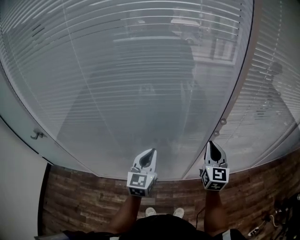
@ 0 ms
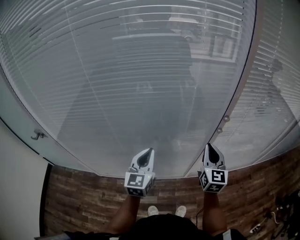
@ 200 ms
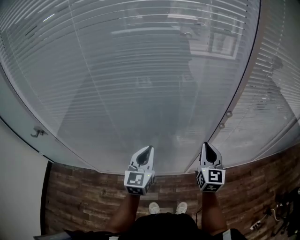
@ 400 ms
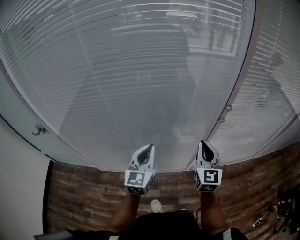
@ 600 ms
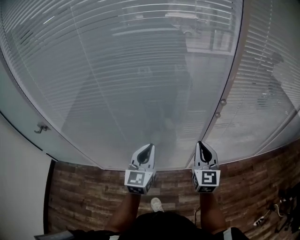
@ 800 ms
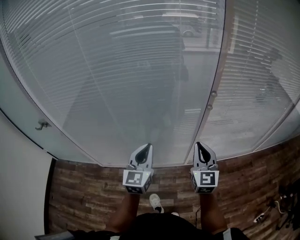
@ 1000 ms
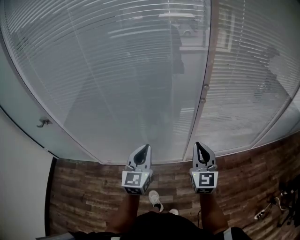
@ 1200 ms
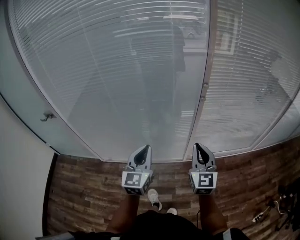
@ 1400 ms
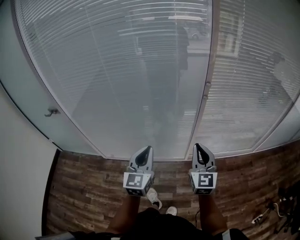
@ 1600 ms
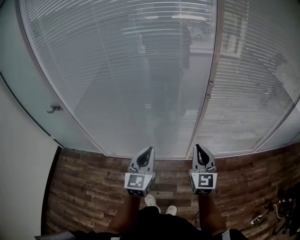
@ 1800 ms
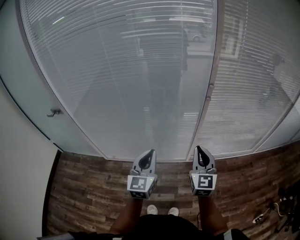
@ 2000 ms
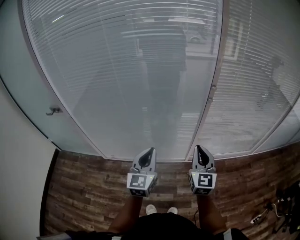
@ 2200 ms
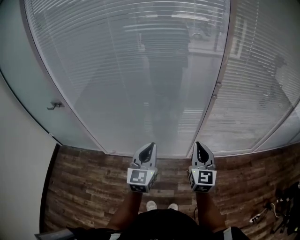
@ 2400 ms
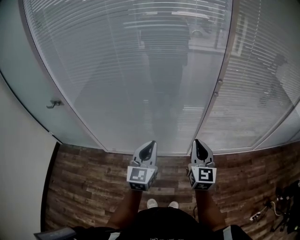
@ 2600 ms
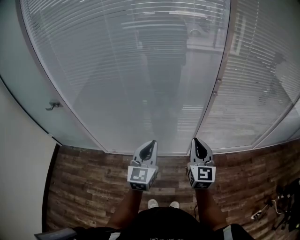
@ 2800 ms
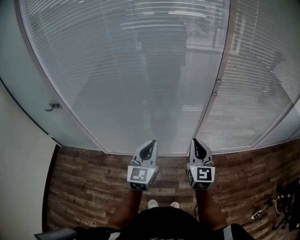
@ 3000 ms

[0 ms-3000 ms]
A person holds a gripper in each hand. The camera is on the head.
0 ms to 1600 ms: Both grippers travel together backward, about 20 cm.
1600 ms to 3000 ms: The right gripper heads to the left, covering some 5 cm.

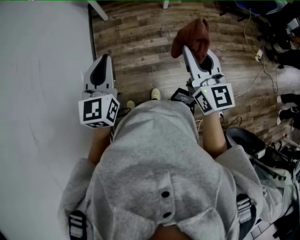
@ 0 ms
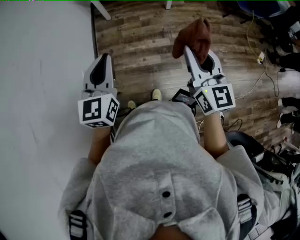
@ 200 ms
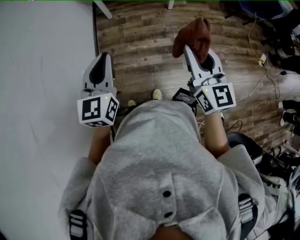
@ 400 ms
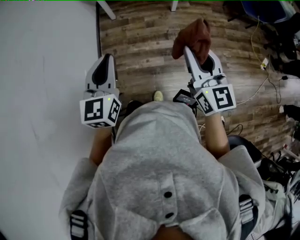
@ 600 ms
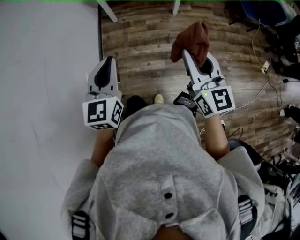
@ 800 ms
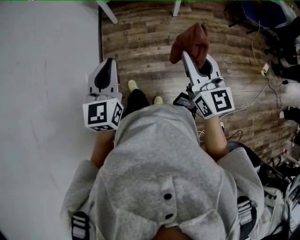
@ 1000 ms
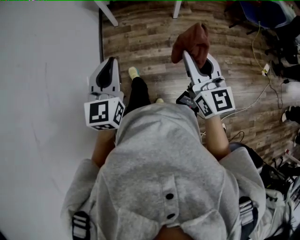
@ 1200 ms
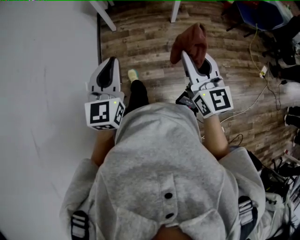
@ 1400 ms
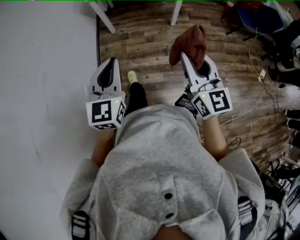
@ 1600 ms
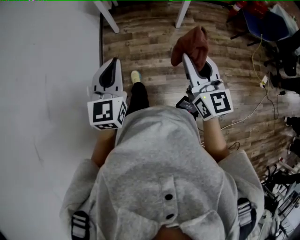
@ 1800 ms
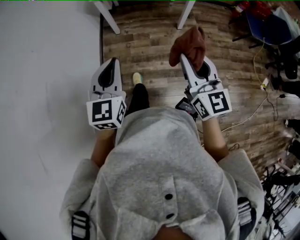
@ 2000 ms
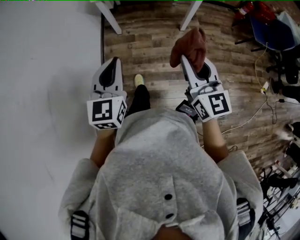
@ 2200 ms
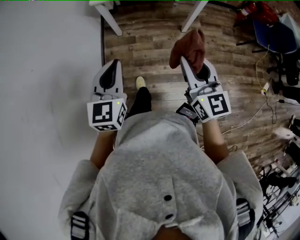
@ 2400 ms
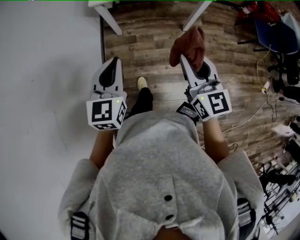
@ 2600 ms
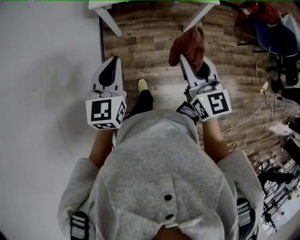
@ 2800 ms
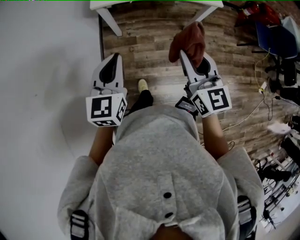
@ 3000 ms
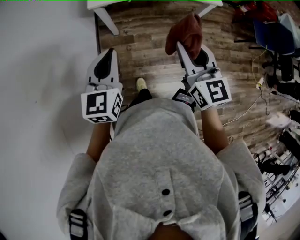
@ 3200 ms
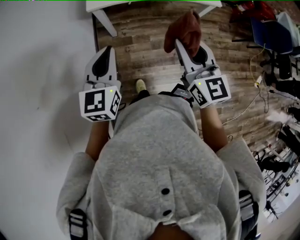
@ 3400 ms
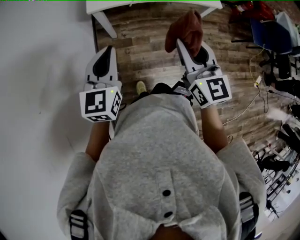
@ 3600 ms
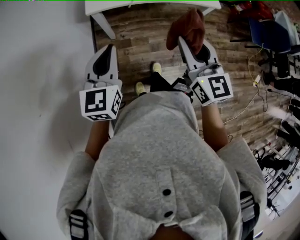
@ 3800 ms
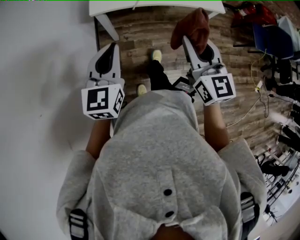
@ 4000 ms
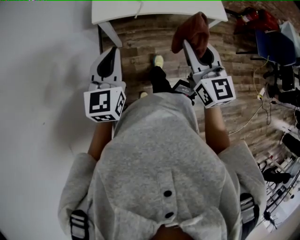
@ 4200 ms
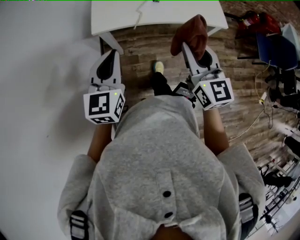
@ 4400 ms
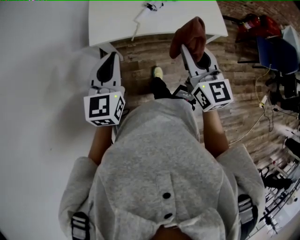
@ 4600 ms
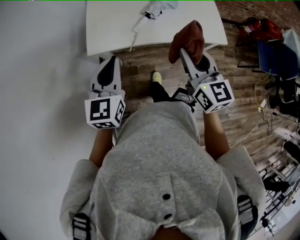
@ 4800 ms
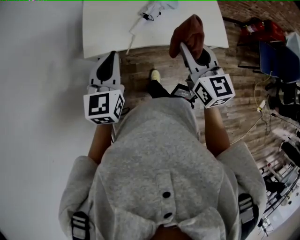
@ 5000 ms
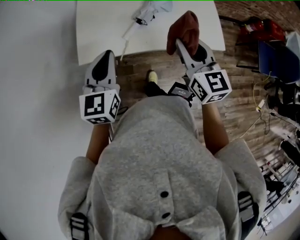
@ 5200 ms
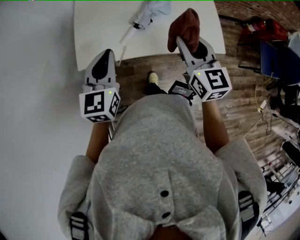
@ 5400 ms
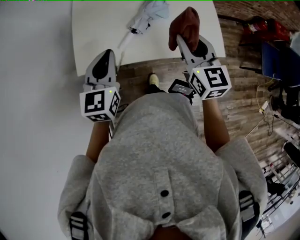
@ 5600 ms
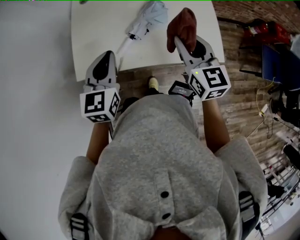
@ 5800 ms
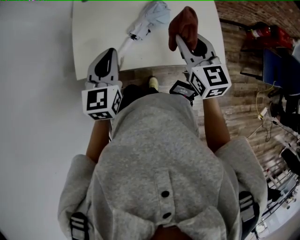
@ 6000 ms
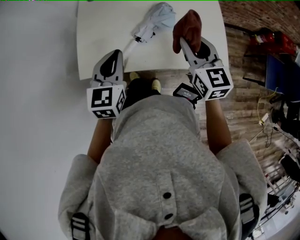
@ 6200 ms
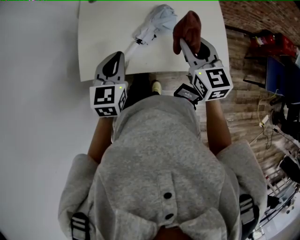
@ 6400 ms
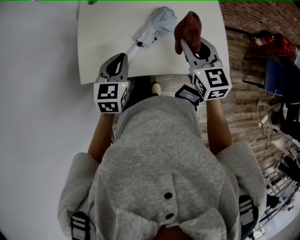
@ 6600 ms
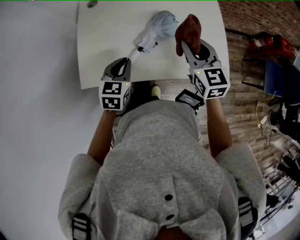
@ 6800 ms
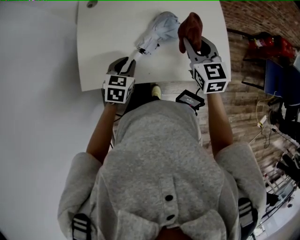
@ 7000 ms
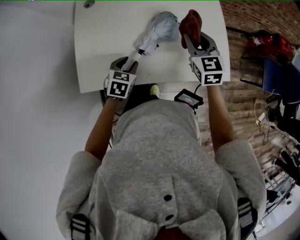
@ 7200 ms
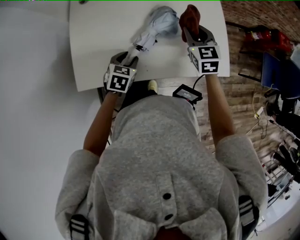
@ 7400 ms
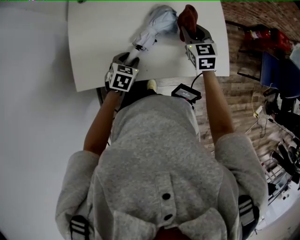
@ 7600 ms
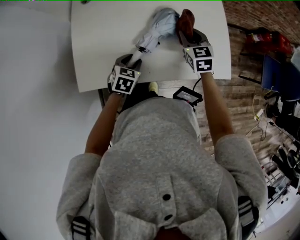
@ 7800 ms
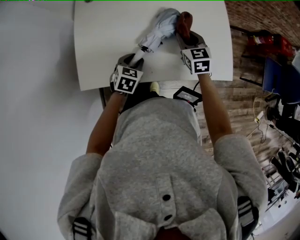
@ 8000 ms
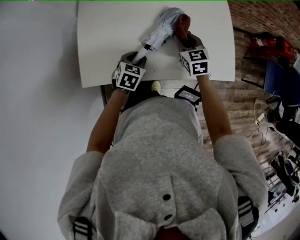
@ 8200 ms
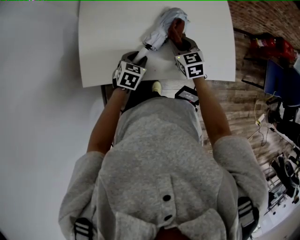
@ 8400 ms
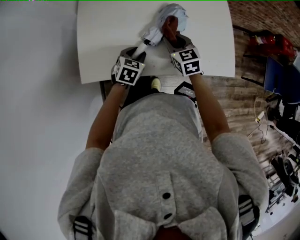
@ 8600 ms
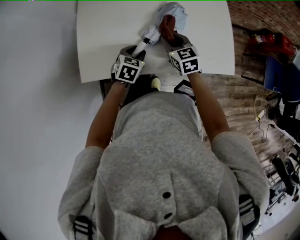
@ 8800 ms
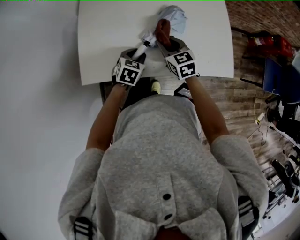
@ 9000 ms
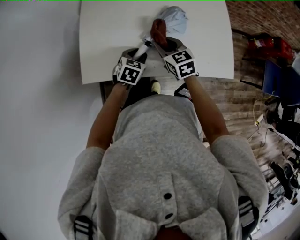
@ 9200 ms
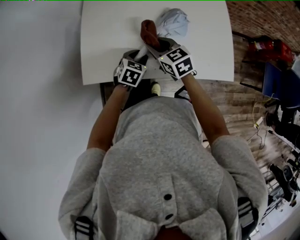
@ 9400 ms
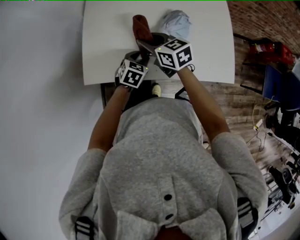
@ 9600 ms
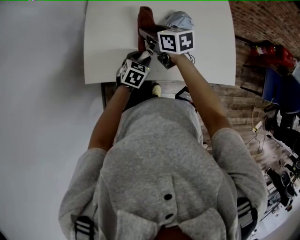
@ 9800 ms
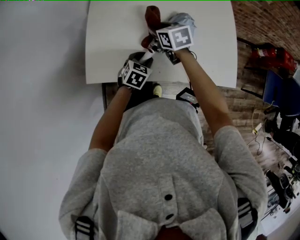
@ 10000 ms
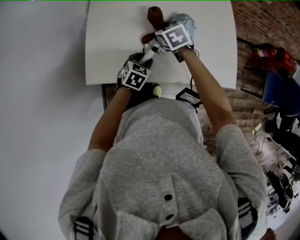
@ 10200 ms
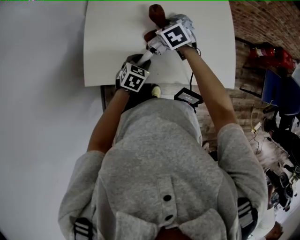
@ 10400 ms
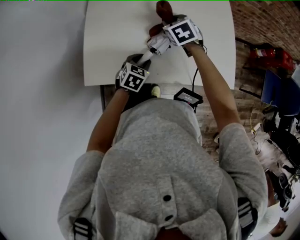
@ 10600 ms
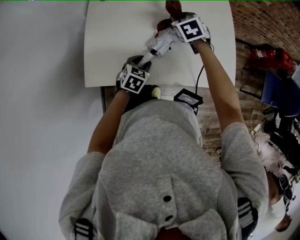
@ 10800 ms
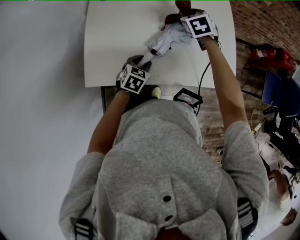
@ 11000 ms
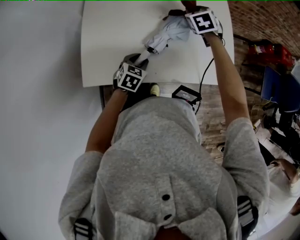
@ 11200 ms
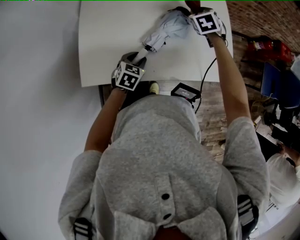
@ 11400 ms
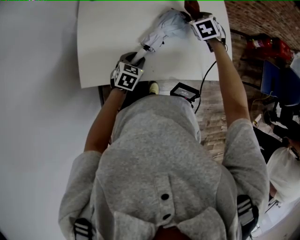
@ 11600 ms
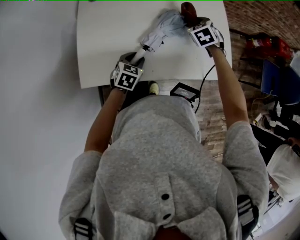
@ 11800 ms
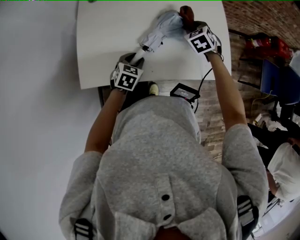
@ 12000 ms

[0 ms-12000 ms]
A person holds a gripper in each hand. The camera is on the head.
0 ms to 1600 ms: The two grippers go roughly 10 cm forward.
1600 ms to 3000 ms: The two grippers travel together, forward, approximately 40 cm.
3000 ms to 4400 ms: Both grippers move forward, some 20 cm.
4400 ms to 6000 ms: The grippers both shift forward and to the right by approximately 35 cm.
6000 ms to 7600 ms: The left gripper moves downward, roughly 25 cm, points its fingers some 30 degrees further downward, and opens, while the right gripper goes roughly 20 cm downward and forward, and turns by roughly 20 degrees.
7600 ms to 9000 ms: The right gripper travels to the left and backward by approximately 15 cm.
9000 ms to 10400 ms: The right gripper heads forward, covering about 10 cm, and swivels some 20 degrees.
10400 ms to 12000 ms: The right gripper moves to the right, some 15 cm.

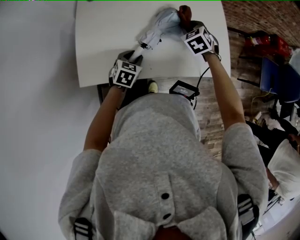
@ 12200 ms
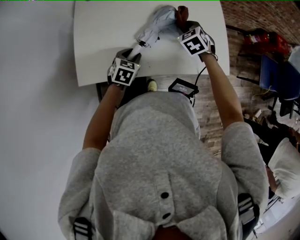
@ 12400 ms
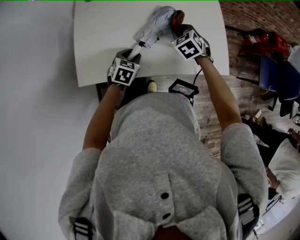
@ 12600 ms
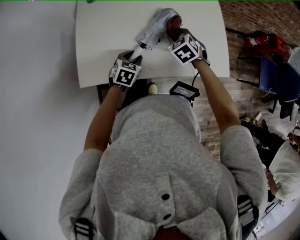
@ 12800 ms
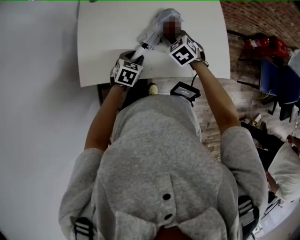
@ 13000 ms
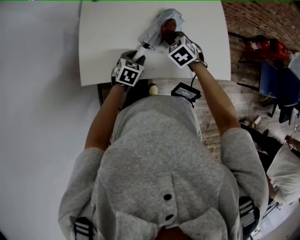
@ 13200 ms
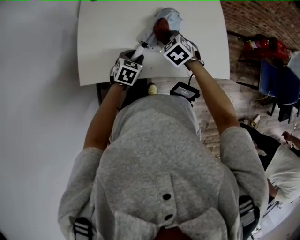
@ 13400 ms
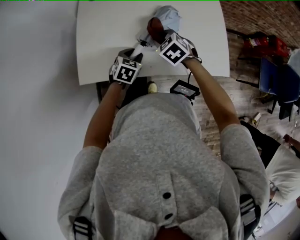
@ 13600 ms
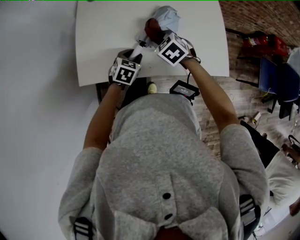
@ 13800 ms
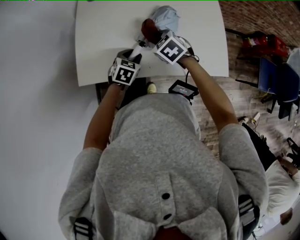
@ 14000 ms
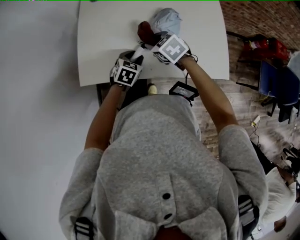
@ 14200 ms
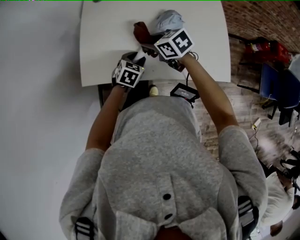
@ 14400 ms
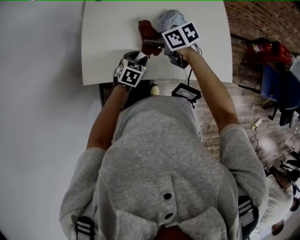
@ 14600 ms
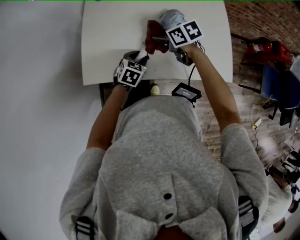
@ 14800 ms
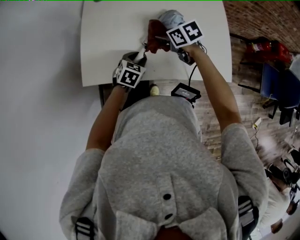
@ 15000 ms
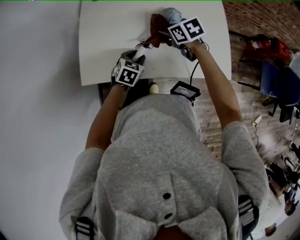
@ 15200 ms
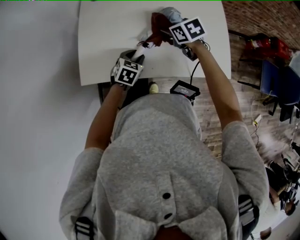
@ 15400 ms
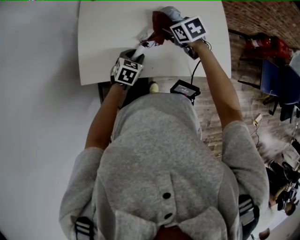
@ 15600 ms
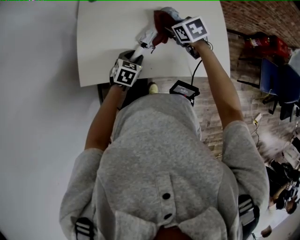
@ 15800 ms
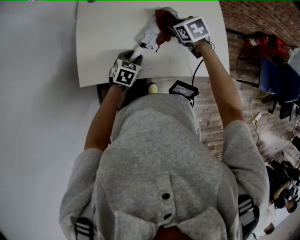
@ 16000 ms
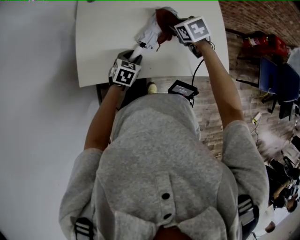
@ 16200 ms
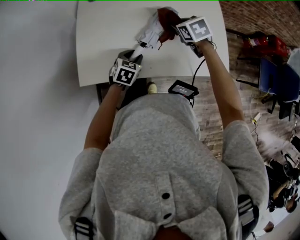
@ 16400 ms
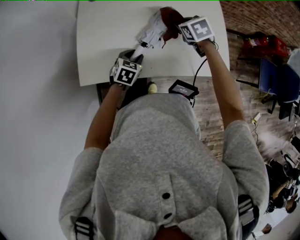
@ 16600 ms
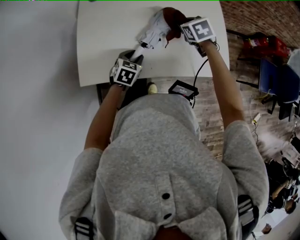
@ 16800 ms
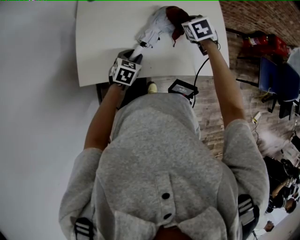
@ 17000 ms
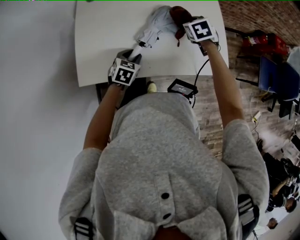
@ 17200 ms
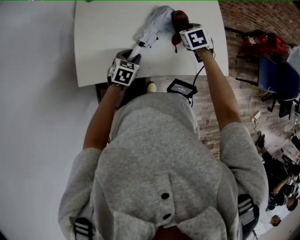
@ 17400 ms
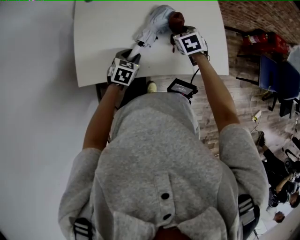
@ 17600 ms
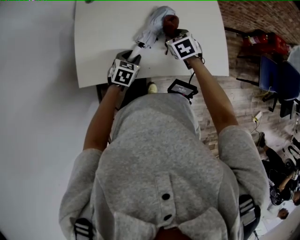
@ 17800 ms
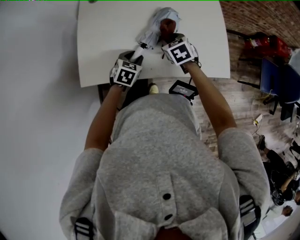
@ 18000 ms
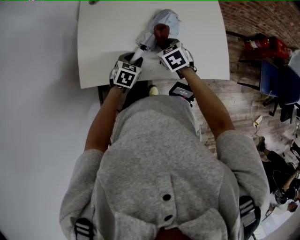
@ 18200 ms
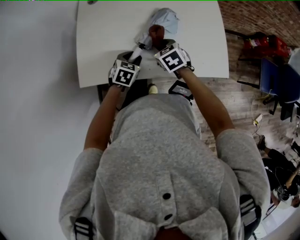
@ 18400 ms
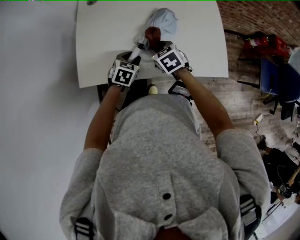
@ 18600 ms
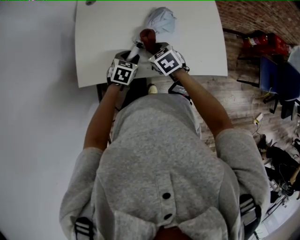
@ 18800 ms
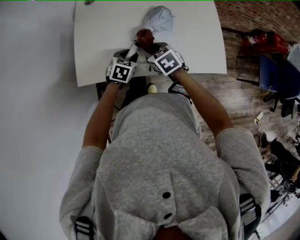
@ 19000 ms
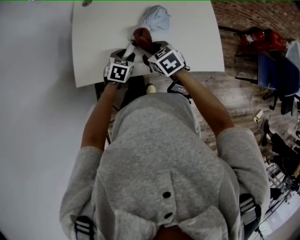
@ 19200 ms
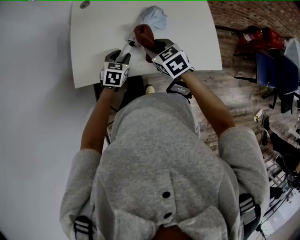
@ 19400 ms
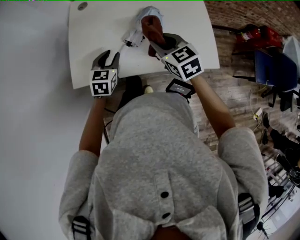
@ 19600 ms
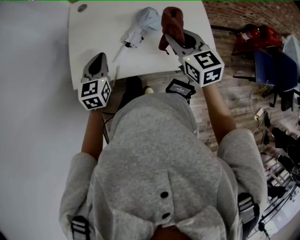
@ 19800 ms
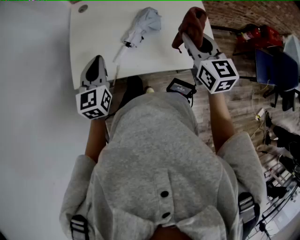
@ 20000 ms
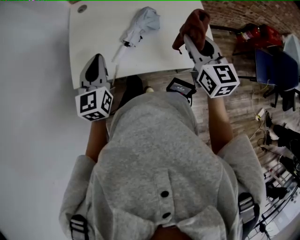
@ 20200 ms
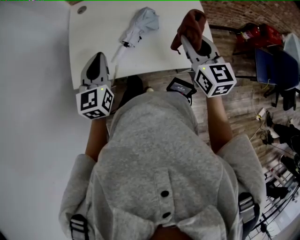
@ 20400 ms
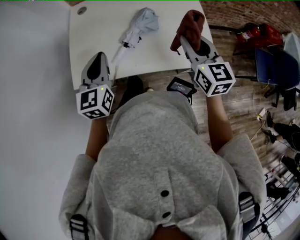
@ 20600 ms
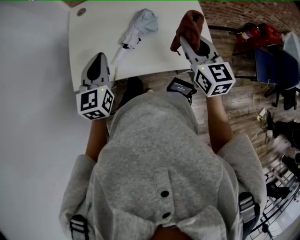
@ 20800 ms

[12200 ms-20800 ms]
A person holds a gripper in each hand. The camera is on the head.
12200 ms to 13600 ms: The right gripper shifts roughly 15 cm to the left and backward.
13600 ms to 15000 ms: The right gripper turns by approximately 30 degrees.
15000 ms to 16600 ms: The right gripper moves to the right, about 10 cm, and rotates about 30 degrees.
16600 ms to 18000 ms: The right gripper goes roughly 5 cm backward.
18000 ms to 19400 ms: The right gripper goes roughly 10 cm upward and backward.
19400 ms to 20800 ms: The right gripper moves to the right and upward, approximately 20 cm, and swivels roughly 40 degrees. Meanwhile the left gripper moves upward, approximately 20 cm, tips its fingers upward by about 30 degrees, and closes.
